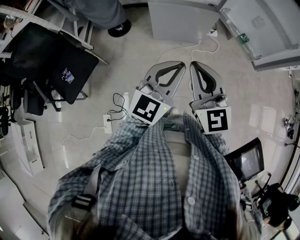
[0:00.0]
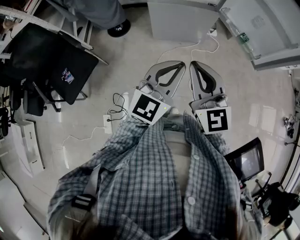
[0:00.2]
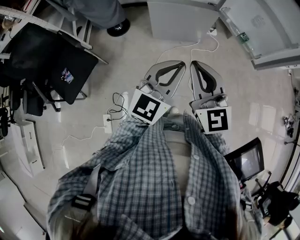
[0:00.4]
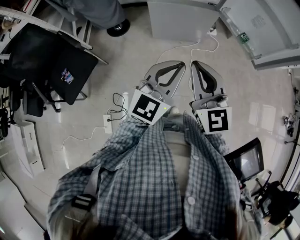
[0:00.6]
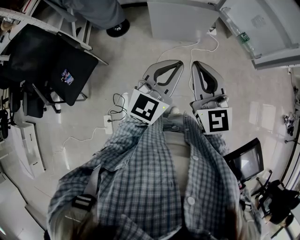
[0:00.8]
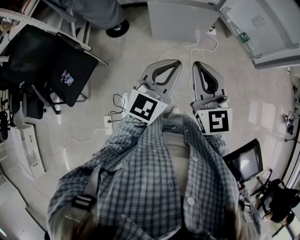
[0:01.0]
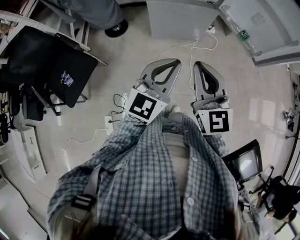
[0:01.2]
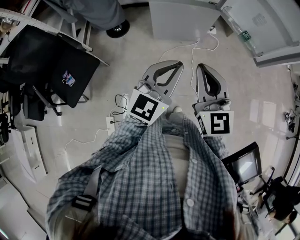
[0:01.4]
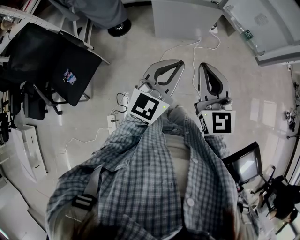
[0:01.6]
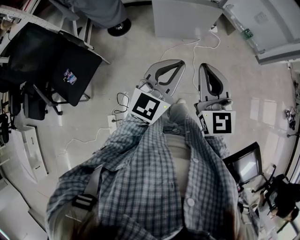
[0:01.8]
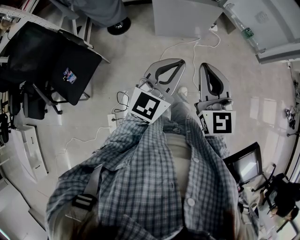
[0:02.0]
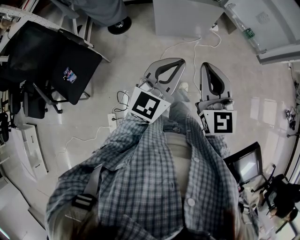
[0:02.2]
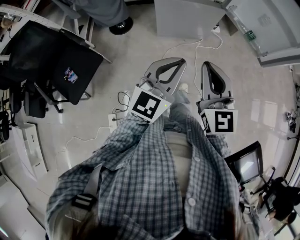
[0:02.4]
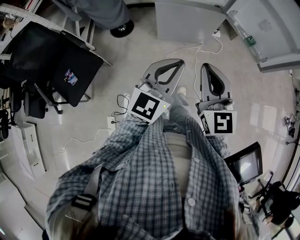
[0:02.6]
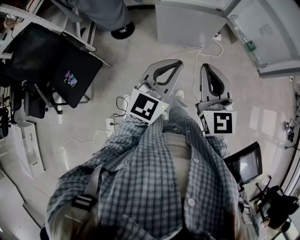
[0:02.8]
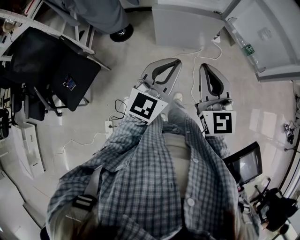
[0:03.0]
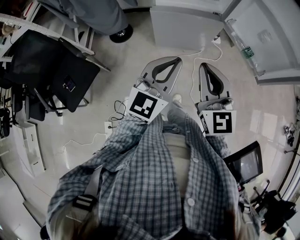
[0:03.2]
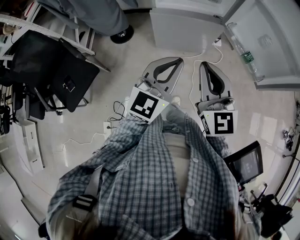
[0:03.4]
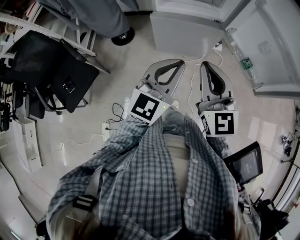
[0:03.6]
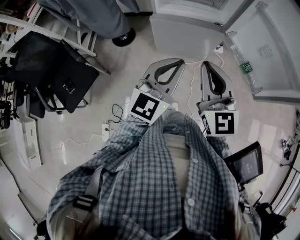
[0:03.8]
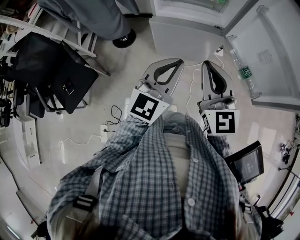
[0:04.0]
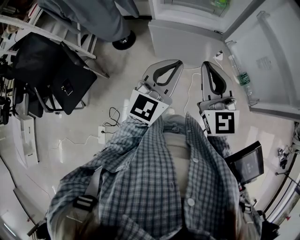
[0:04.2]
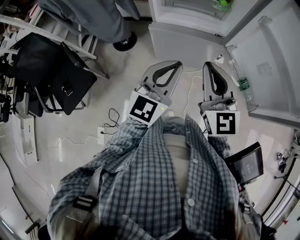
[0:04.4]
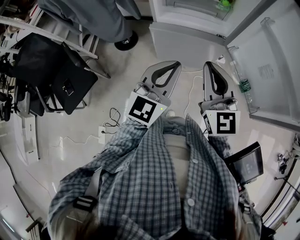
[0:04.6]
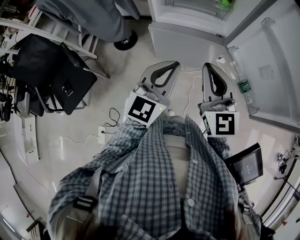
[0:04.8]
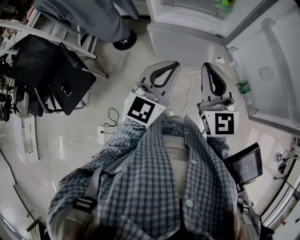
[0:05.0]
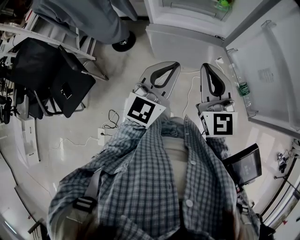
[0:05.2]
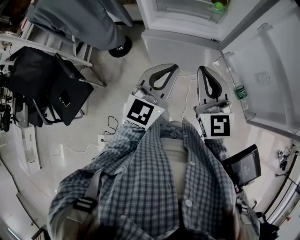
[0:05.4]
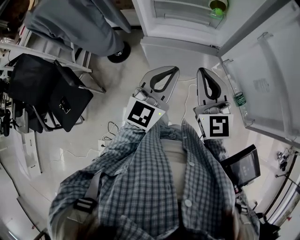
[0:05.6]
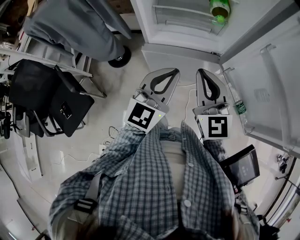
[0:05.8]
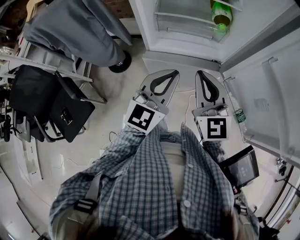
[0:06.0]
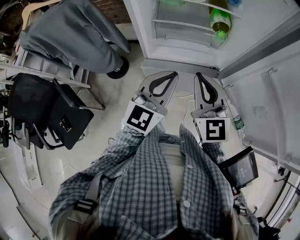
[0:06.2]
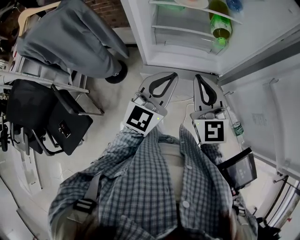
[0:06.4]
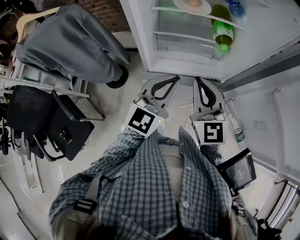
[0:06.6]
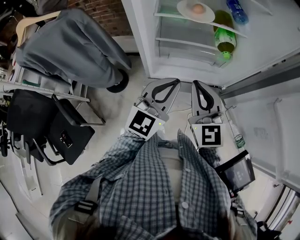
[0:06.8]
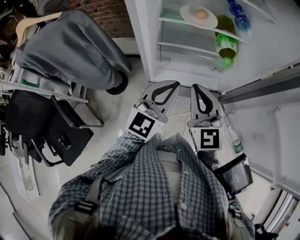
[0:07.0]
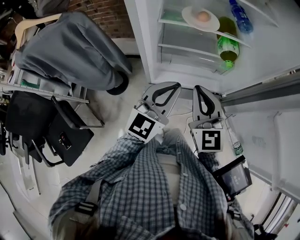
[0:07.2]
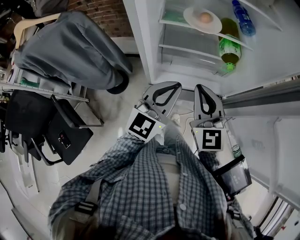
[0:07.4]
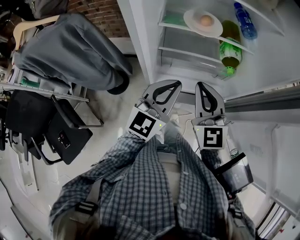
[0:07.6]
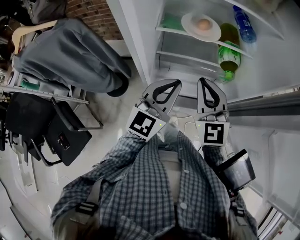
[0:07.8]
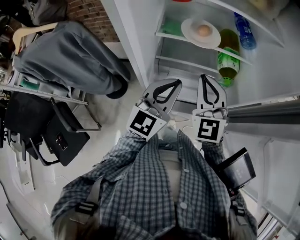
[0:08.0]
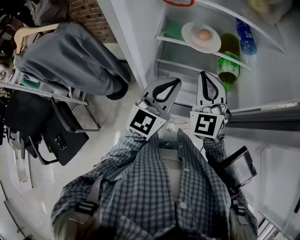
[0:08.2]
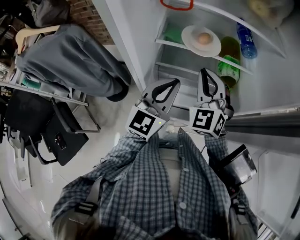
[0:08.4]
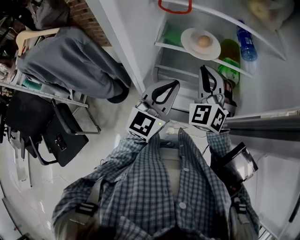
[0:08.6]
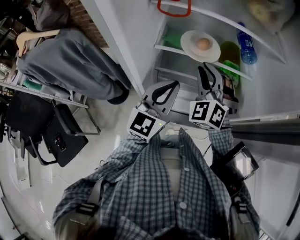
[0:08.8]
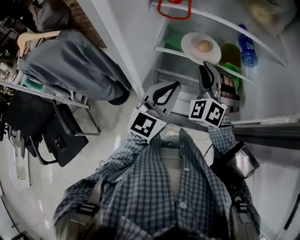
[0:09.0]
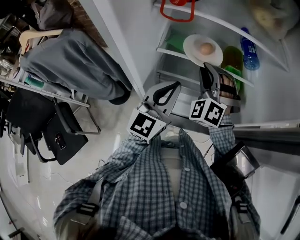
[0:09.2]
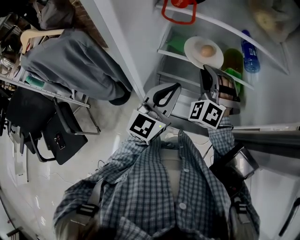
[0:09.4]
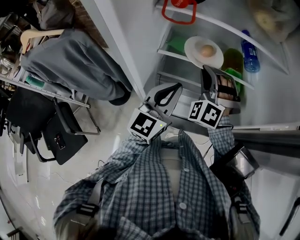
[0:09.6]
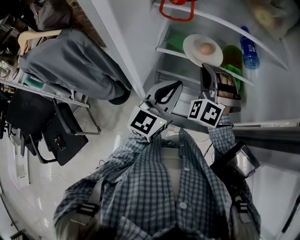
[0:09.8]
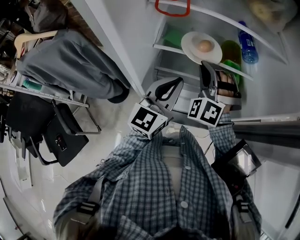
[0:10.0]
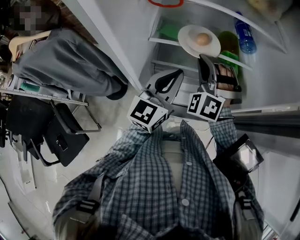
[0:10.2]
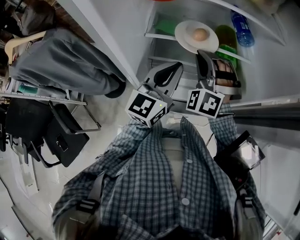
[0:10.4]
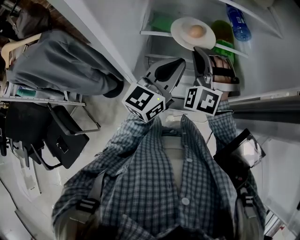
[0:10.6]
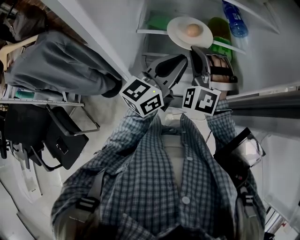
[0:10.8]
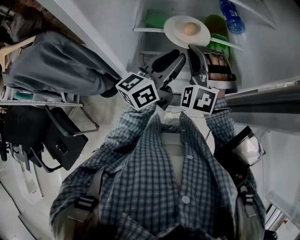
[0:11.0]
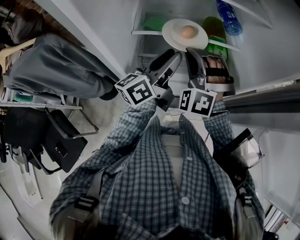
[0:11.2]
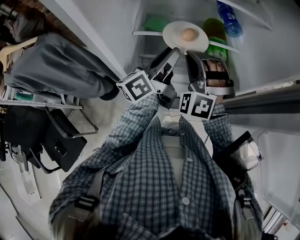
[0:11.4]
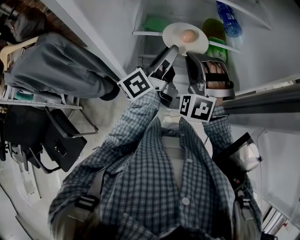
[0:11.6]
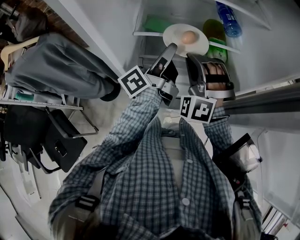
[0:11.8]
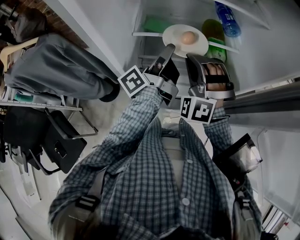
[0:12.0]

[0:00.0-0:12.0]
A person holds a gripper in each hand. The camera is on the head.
0:00.0 to 0:01.6: The left gripper heads to the left, covering roughly 5 cm.
0:01.6 to 0:03.0: The grippers both shift forward by roughly 10 cm.
0:03.0 to 0:04.4: The two grippers go some 20 cm forward and to the right.
0:04.4 to 0:06.0: Both grippers move forward, roughly 15 cm.
0:06.0 to 0:07.6: Both grippers travel together forward, roughly 15 cm.
0:07.6 to 0:09.0: The left gripper moves forward, approximately 10 cm; the right gripper is displaced forward by about 15 cm, and rotates around the line of its fingers by some 50 degrees, counterclockwise from behind.
0:09.0 to 0:10.4: The grippers move only a little.
0:10.4 to 0:12.0: The left gripper rotates around the line of its fingers by some 70 degrees, counterclockwise from behind, and opens its fingers.

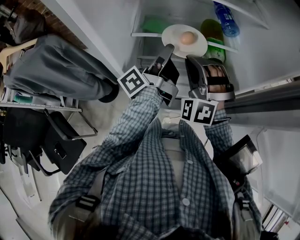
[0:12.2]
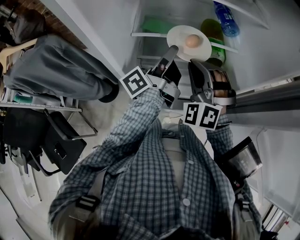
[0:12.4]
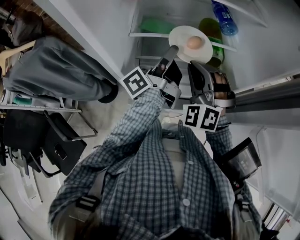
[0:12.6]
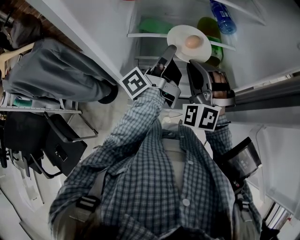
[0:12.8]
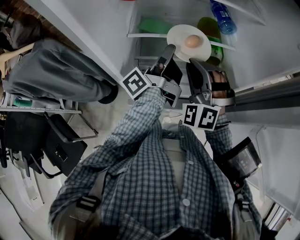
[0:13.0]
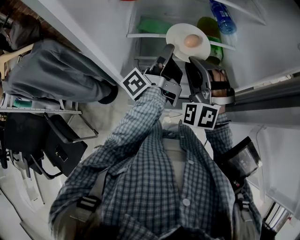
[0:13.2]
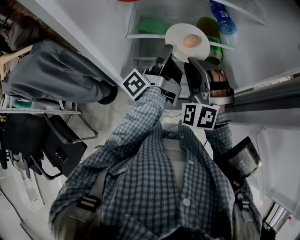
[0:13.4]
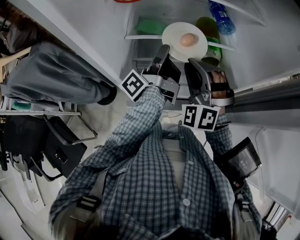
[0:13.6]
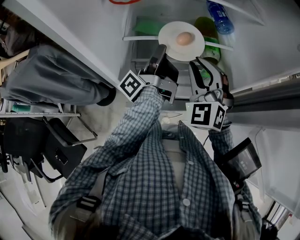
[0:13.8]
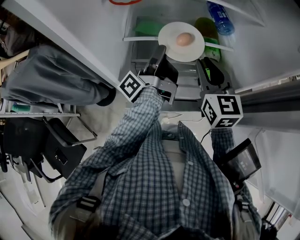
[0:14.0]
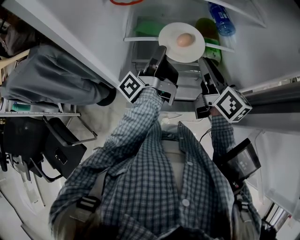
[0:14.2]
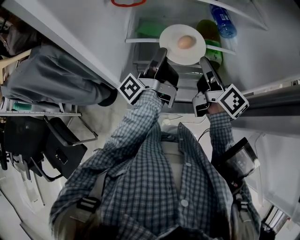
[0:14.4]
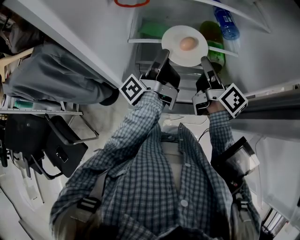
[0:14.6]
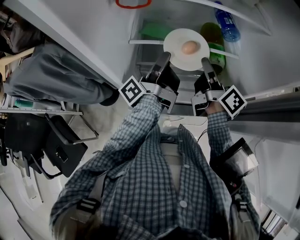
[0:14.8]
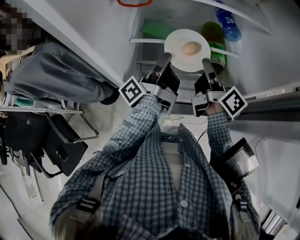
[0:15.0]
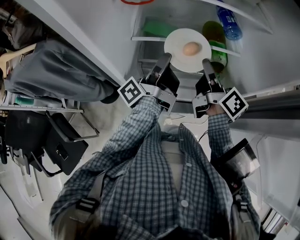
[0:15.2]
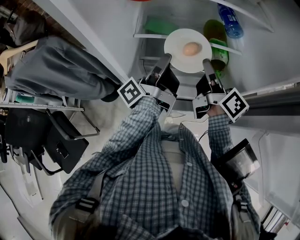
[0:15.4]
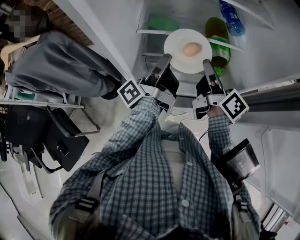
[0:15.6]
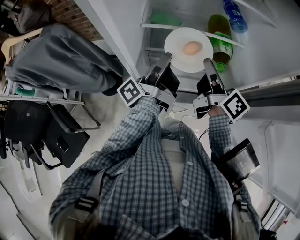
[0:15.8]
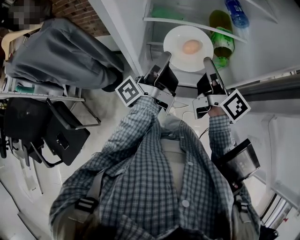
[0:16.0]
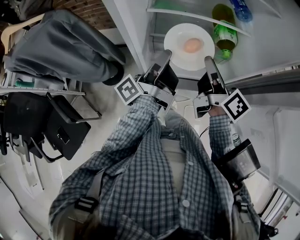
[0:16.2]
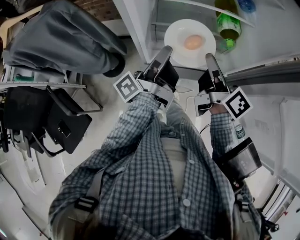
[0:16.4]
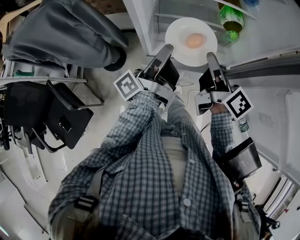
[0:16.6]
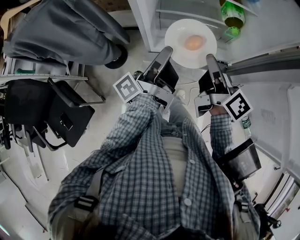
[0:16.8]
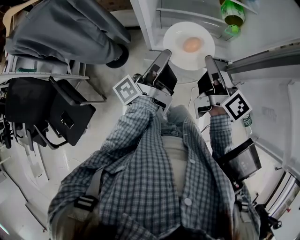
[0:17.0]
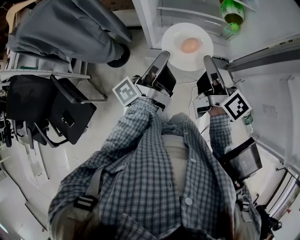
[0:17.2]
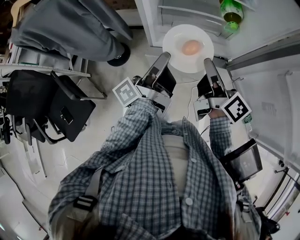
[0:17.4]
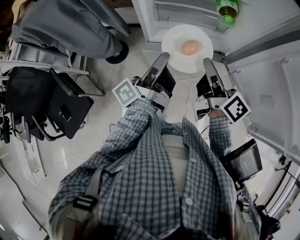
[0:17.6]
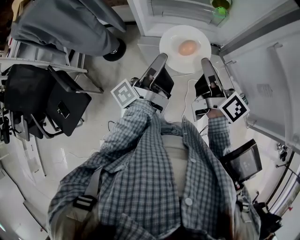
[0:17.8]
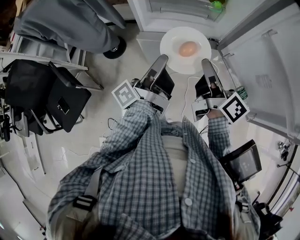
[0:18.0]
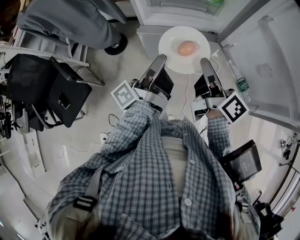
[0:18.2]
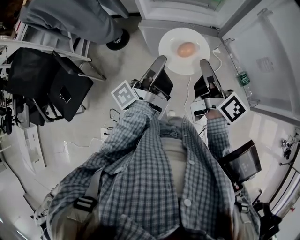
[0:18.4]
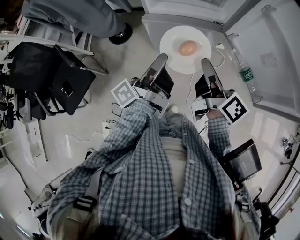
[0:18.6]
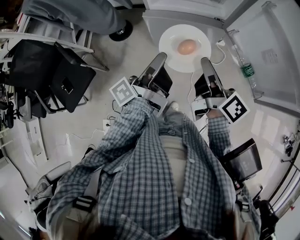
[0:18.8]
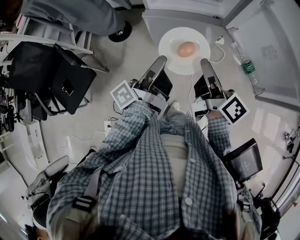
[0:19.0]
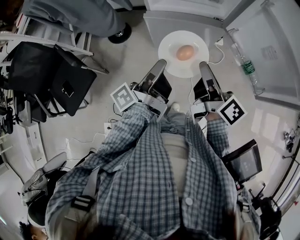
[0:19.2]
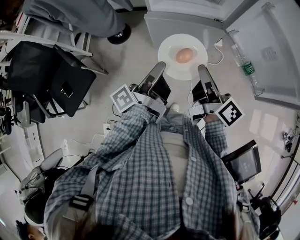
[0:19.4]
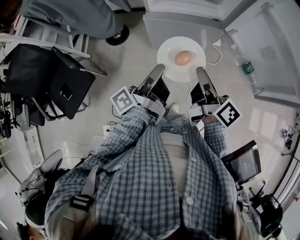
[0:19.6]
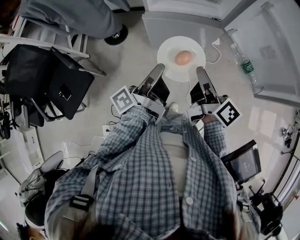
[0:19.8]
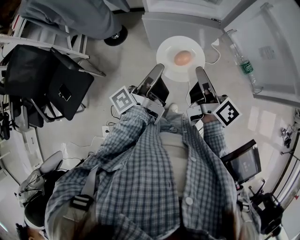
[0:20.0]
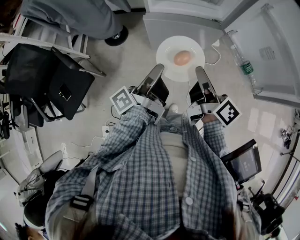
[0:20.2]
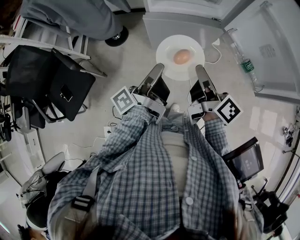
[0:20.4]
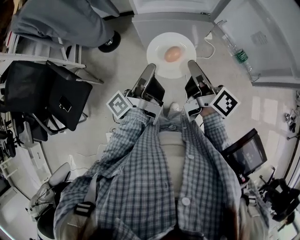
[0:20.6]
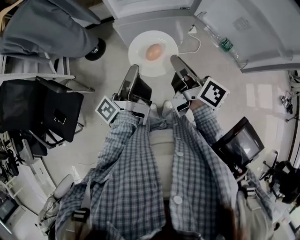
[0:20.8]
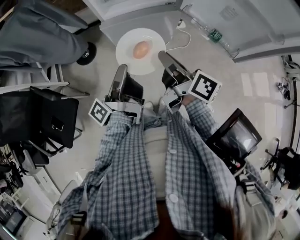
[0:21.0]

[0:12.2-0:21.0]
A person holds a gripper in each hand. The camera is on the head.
0:12.2 to 0:13.6: The grippers make only small movements.
0:13.6 to 0:15.2: The right gripper is displaced to the right by approximately 5 cm, and rotates around the line of its fingers by roughly 130 degrees, clockwise from behind.
0:15.2 to 0:16.6: Both grippers travel together backward, approximately 15 cm.
0:16.6 to 0:18.0: The two grippers go roughly 20 cm backward.
0:18.0 to 0:19.6: The grippers both shift backward by some 15 cm.
0:19.6 to 0:21.0: The grippers stay close to where they were, moving slightly.

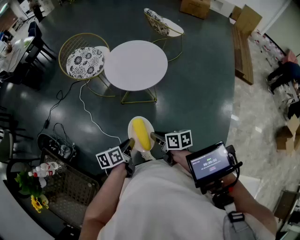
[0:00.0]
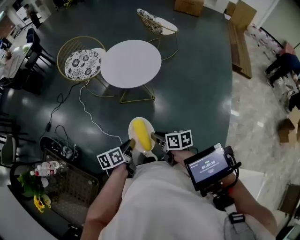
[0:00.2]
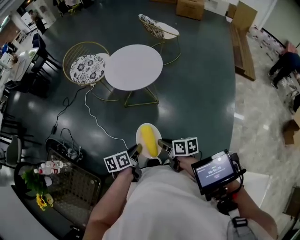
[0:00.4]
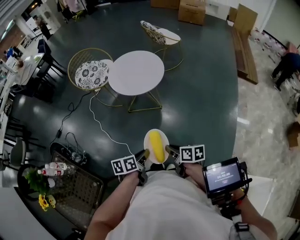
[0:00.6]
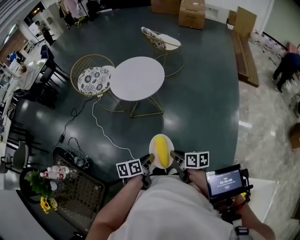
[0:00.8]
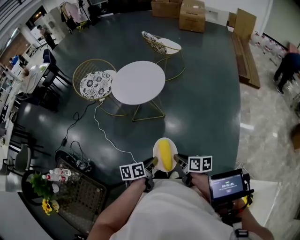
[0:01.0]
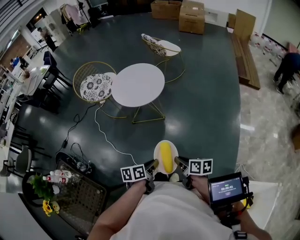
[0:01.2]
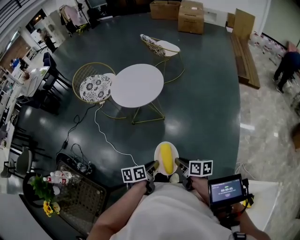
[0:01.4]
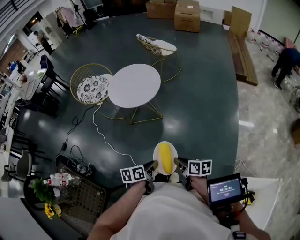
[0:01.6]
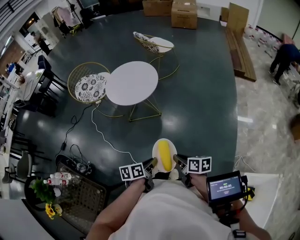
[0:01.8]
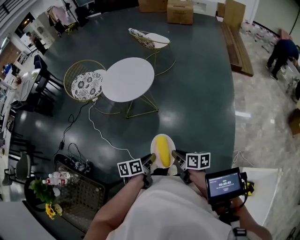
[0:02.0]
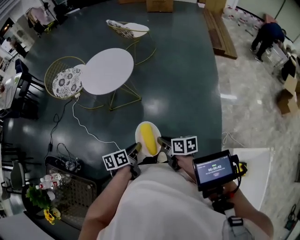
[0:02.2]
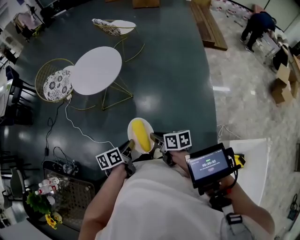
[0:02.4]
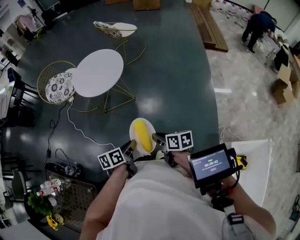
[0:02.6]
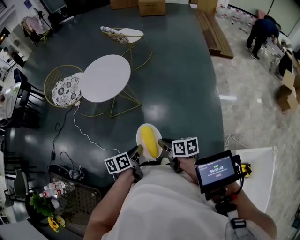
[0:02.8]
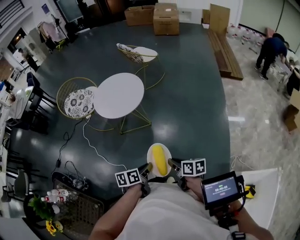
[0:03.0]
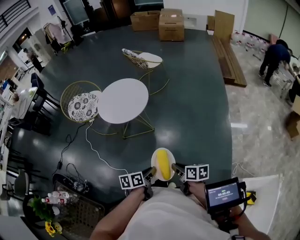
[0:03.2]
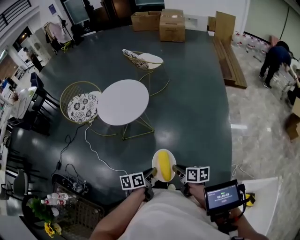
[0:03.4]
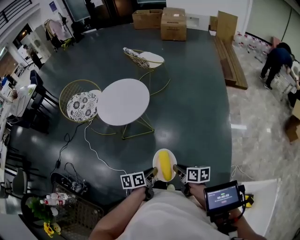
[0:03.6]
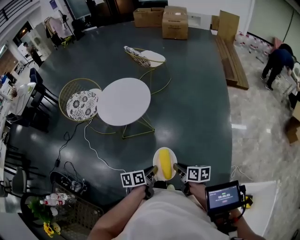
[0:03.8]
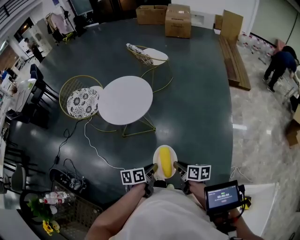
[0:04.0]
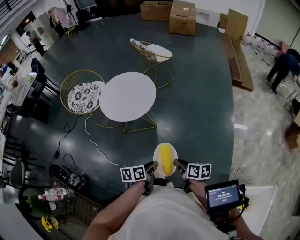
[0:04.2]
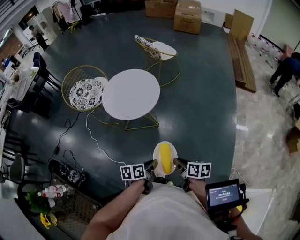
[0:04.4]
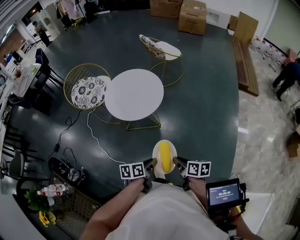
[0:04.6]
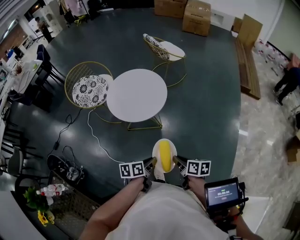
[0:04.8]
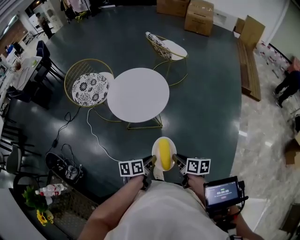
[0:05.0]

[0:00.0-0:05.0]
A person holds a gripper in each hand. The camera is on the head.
0:00.0 to 0:01.6: The left gripper moves to the right and backward, roughly 20 cm. The right gripper shifts about 20 cm backward and to the right.
0:01.6 to 0:03.4: The right gripper changes place by about 5 cm; the left gripper shifts by some 5 cm.
0:03.4 to 0:05.0: The two grippers go approximately 20 cm forward and to the left.
